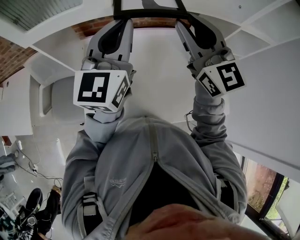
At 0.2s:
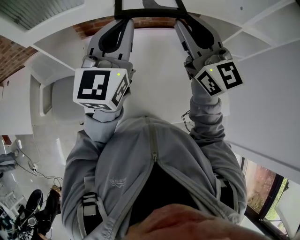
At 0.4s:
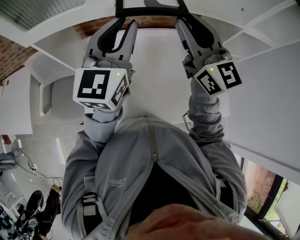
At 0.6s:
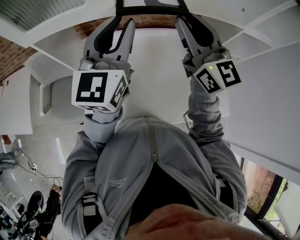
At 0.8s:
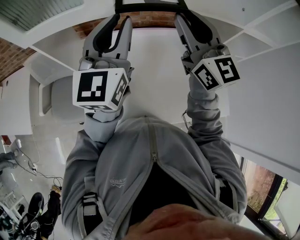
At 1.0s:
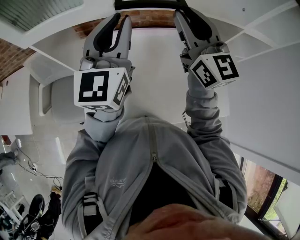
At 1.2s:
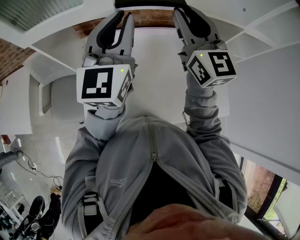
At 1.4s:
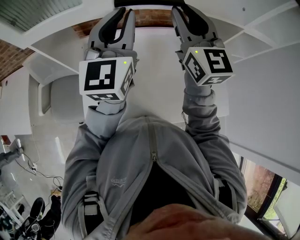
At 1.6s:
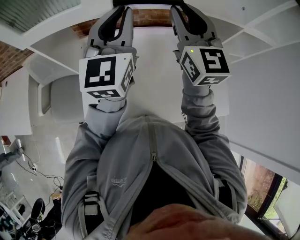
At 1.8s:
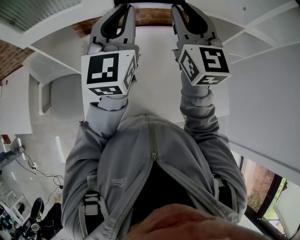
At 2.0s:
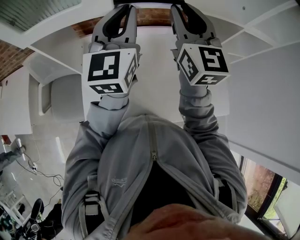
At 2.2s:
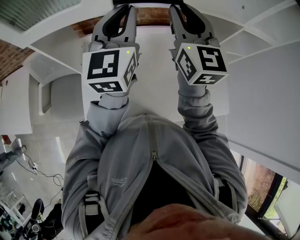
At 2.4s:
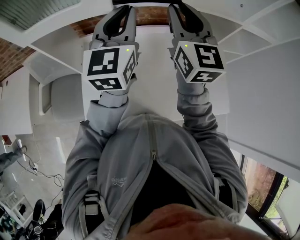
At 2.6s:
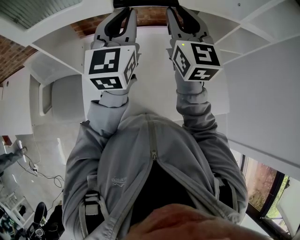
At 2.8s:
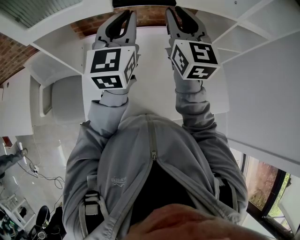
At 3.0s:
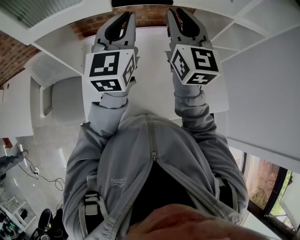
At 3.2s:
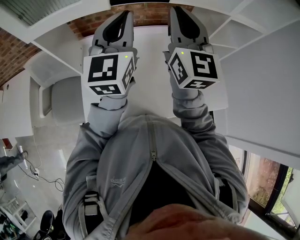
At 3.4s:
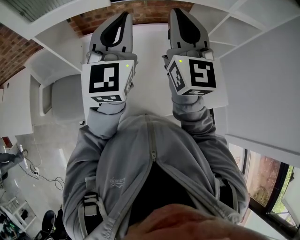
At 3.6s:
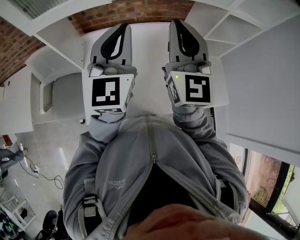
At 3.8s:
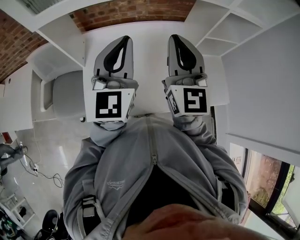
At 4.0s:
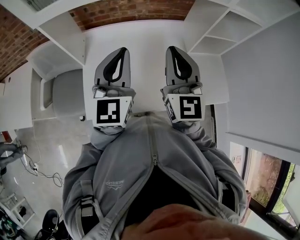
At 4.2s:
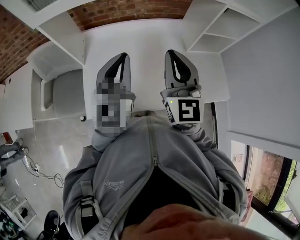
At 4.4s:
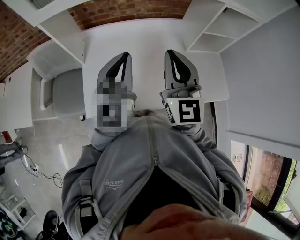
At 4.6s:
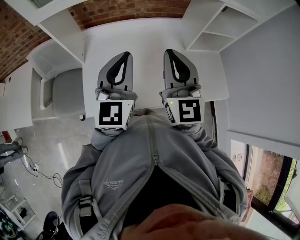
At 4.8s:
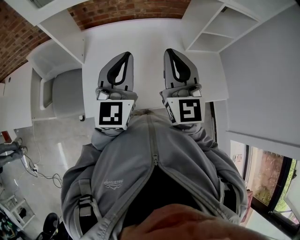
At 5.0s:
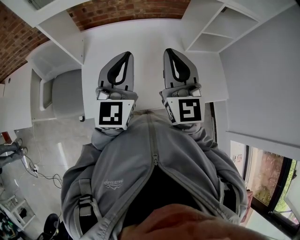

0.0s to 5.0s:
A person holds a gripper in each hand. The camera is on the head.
0.0s to 1.6s: The right gripper is displaced forward by roughly 5 cm.
1.6s to 3.4s: Both grippers travel together backward, approximately 10 cm.
3.4s to 5.0s: Both grippers travel together backward and downward, approximately 15 cm.

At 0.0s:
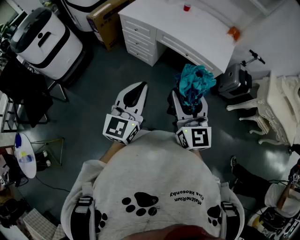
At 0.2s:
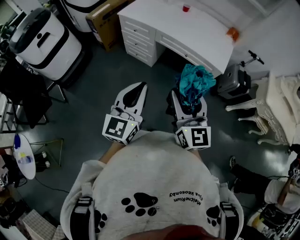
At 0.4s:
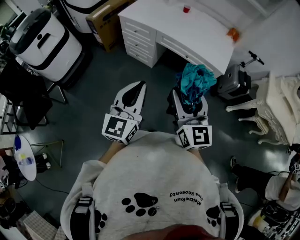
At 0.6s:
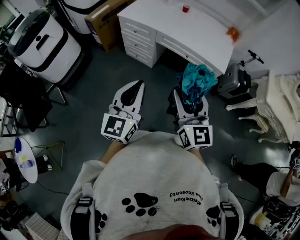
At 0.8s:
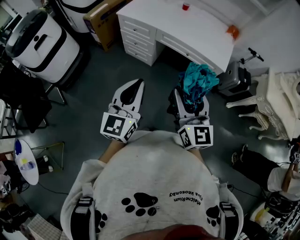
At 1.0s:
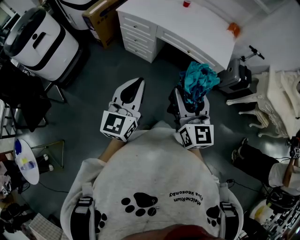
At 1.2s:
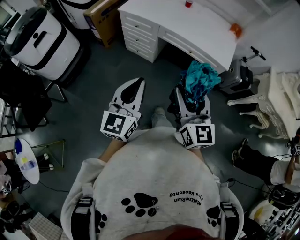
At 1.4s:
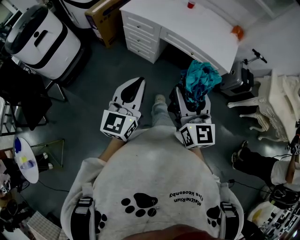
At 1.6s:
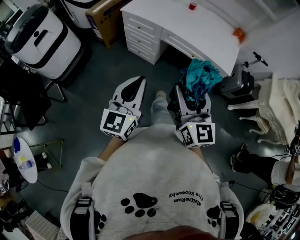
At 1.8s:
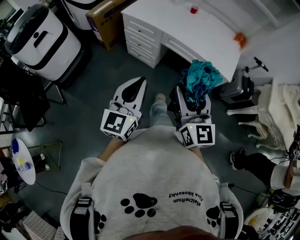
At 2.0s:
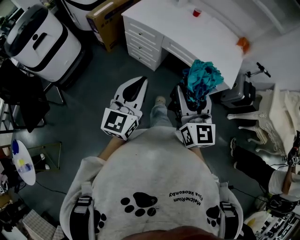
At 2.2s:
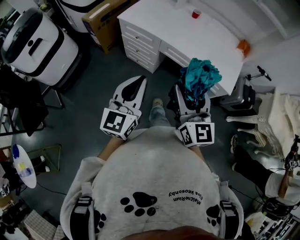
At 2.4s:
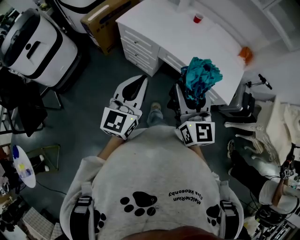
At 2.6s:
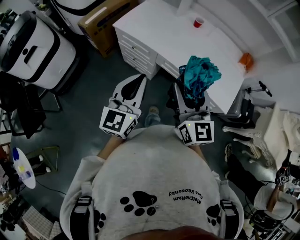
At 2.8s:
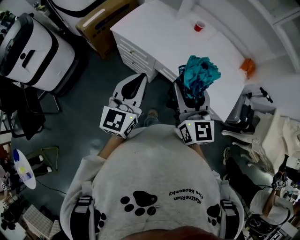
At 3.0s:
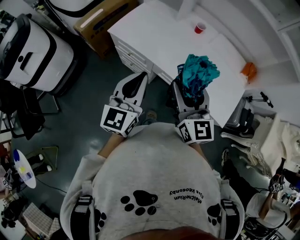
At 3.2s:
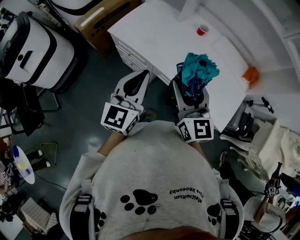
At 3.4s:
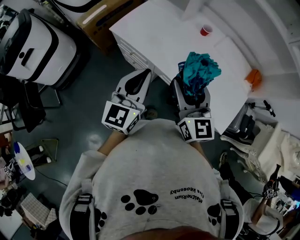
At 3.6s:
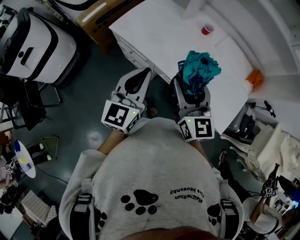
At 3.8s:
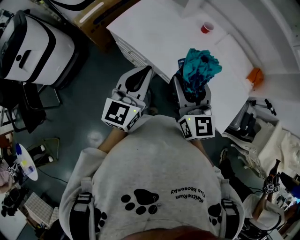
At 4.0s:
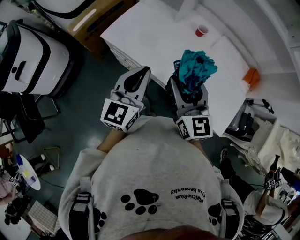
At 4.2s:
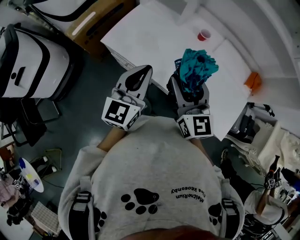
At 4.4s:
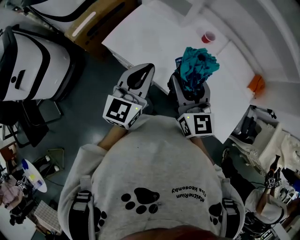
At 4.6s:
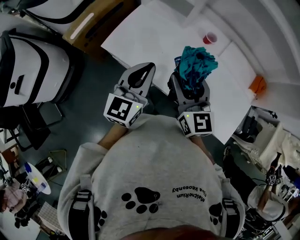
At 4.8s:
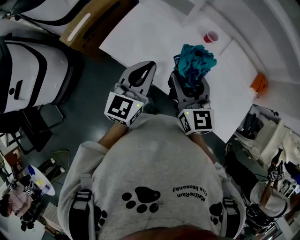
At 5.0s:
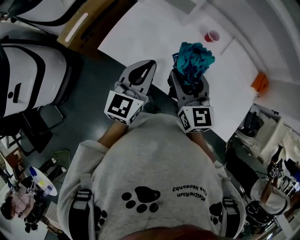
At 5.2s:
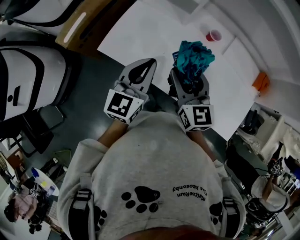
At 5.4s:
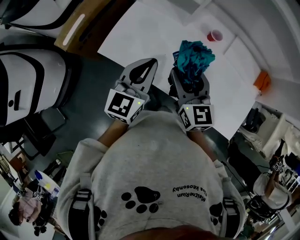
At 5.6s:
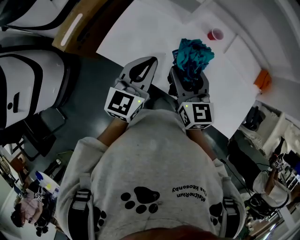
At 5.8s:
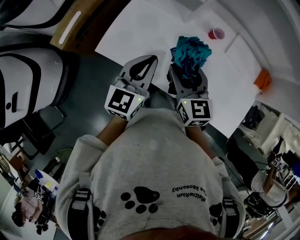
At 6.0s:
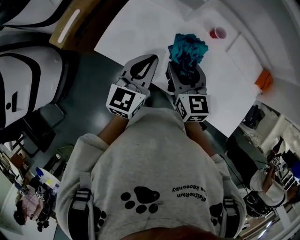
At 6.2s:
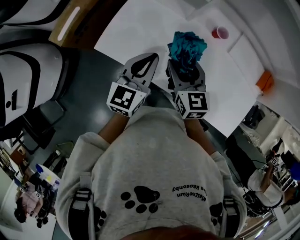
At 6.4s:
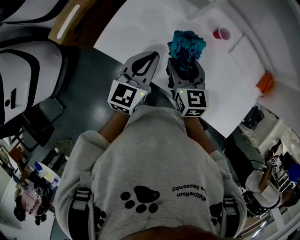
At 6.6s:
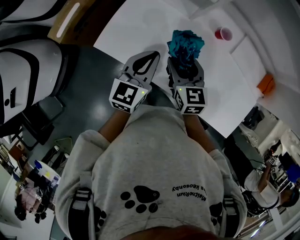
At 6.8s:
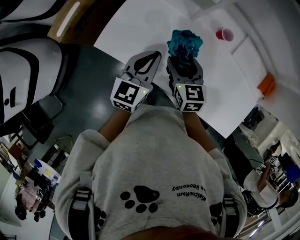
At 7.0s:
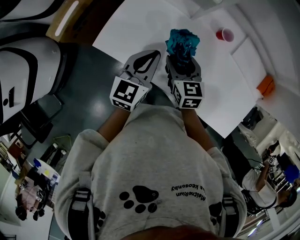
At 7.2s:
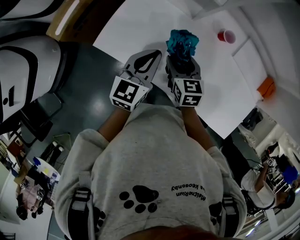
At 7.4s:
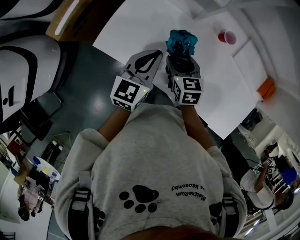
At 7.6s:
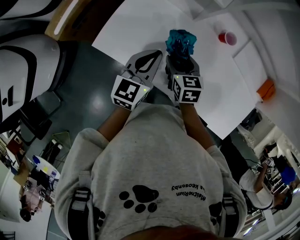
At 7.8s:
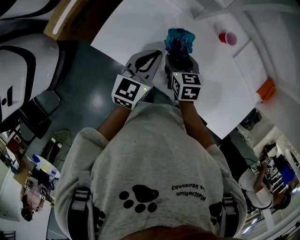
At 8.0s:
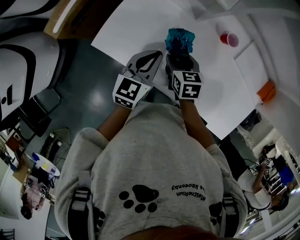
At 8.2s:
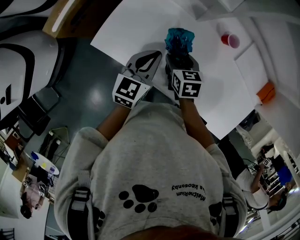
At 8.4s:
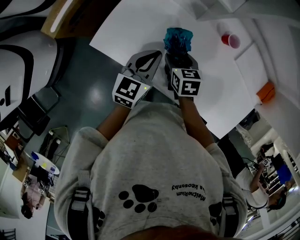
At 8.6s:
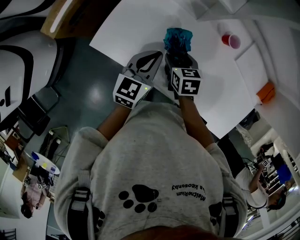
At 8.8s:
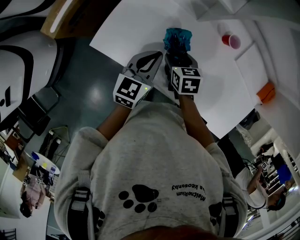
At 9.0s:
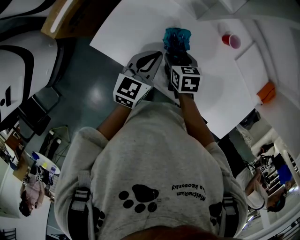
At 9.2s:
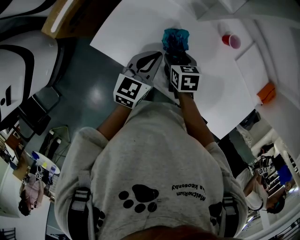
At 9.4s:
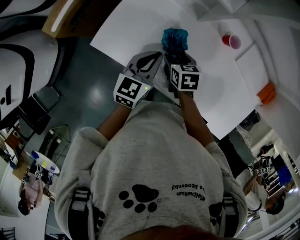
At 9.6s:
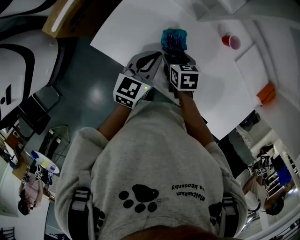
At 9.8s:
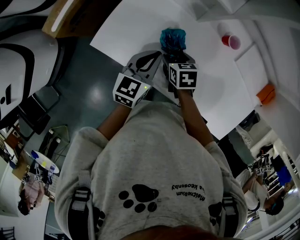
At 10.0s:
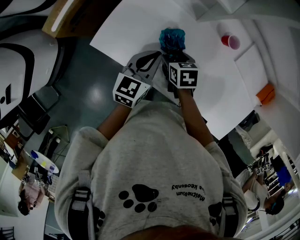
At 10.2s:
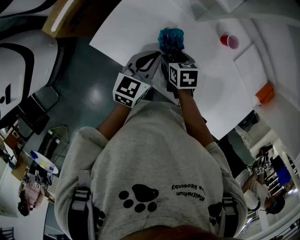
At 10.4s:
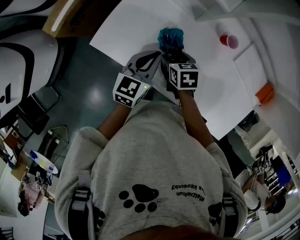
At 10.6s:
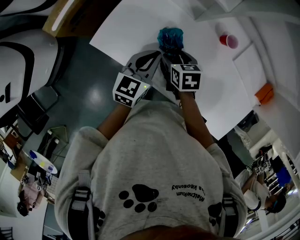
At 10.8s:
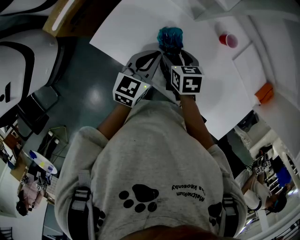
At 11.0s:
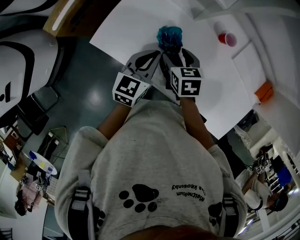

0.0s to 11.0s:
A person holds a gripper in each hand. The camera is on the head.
0.0s to 1.6s: The grippers both shift to the left and forward by roughly 10 cm.
1.6s to 3.2s: The two grippers travel together, forward, roughly 50 cm.
3.2s to 4.8s: Both grippers move forward, about 25 cm.
4.8s to 6.2s: The left gripper is displaced forward and downward by roughly 10 cm, while the right gripper goes about 15 cm downward and forward.
6.2s to 7.8s: The left gripper shifts roughly 10 cm downward. Meanwhile the right gripper heads downward, covering approximately 15 cm, and rotates about 20 degrees.
7.8s to 9.4s: The right gripper heads downward, covering some 5 cm.
9.4s to 11.0s: The right gripper travels upward by approximately 5 cm.

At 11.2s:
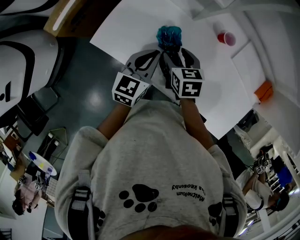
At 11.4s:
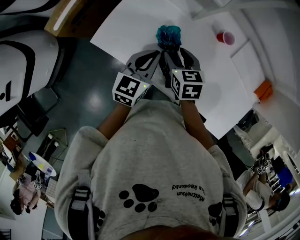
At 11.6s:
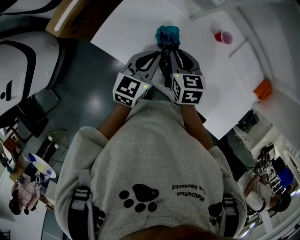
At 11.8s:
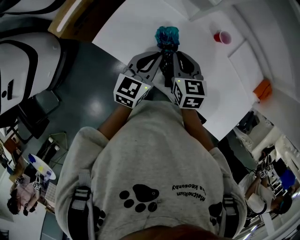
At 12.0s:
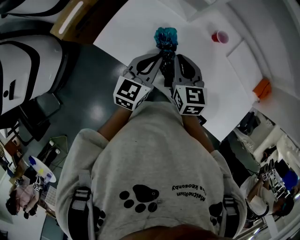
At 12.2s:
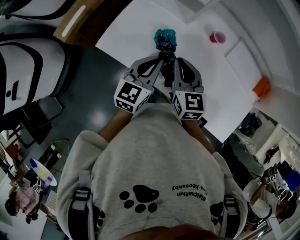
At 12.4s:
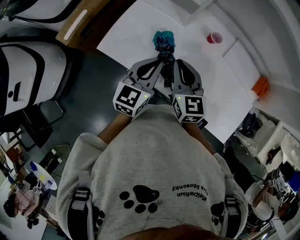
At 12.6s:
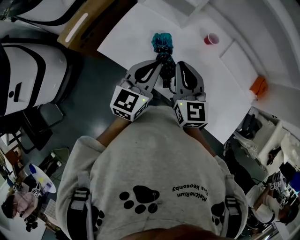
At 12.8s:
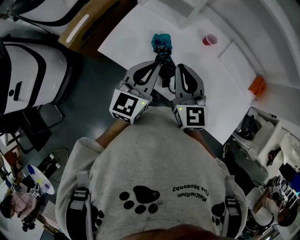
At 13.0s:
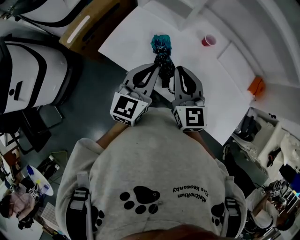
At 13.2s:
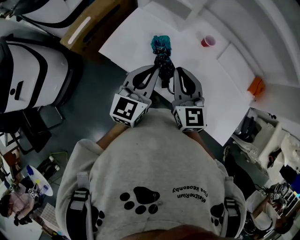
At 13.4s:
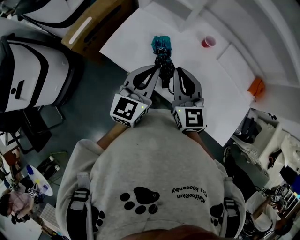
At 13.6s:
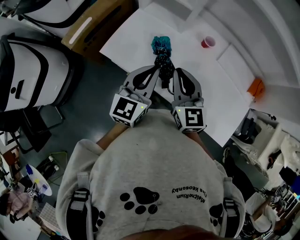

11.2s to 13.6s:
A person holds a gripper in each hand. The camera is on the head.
11.2s to 12.4s: The two grippers go roughly 15 cm upward and backward. The right gripper angles its fingers upward, by some 30 degrees, and closes its fingers.
12.4s to 13.6s: The left gripper is displaced upward and backward by roughly 10 cm, while the right gripper moves backward and upward, some 10 cm.

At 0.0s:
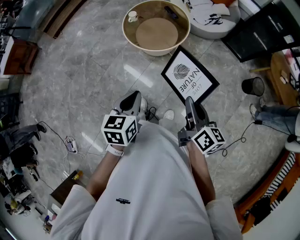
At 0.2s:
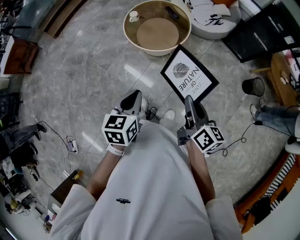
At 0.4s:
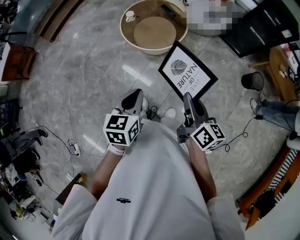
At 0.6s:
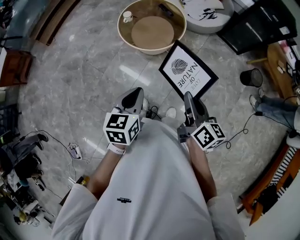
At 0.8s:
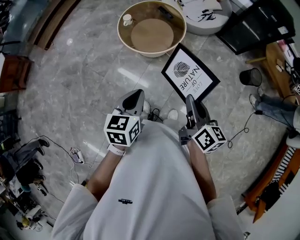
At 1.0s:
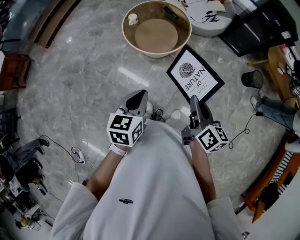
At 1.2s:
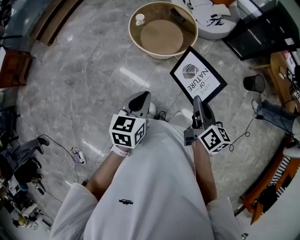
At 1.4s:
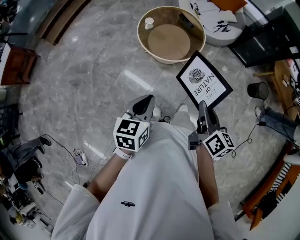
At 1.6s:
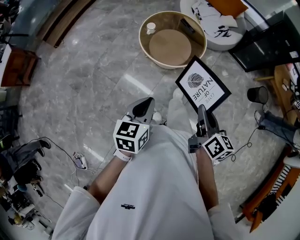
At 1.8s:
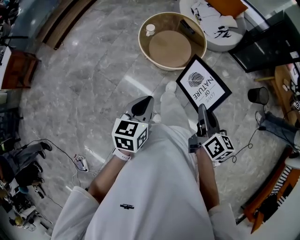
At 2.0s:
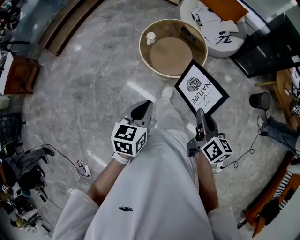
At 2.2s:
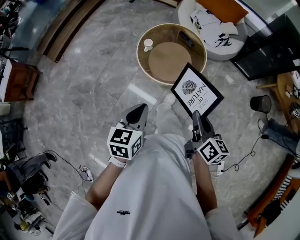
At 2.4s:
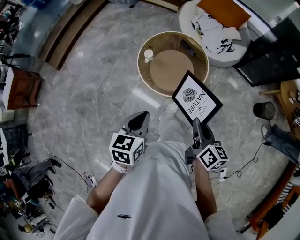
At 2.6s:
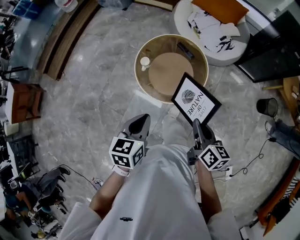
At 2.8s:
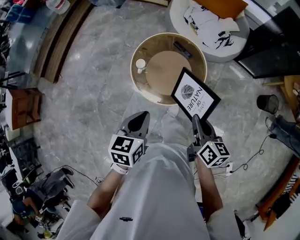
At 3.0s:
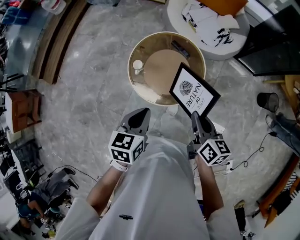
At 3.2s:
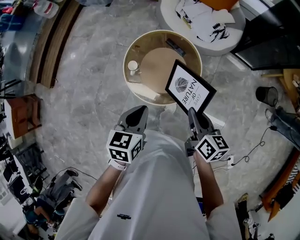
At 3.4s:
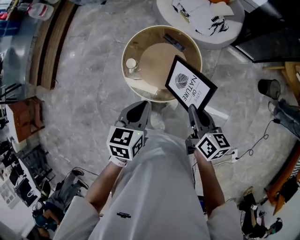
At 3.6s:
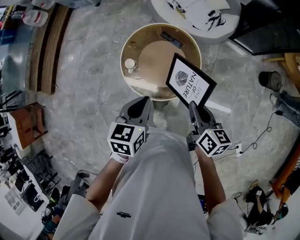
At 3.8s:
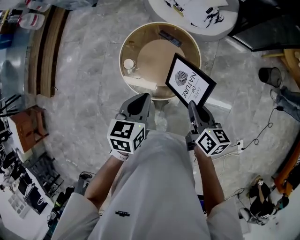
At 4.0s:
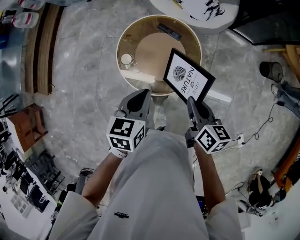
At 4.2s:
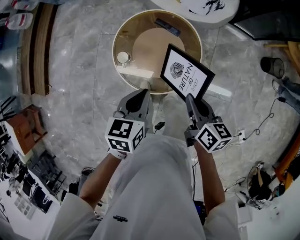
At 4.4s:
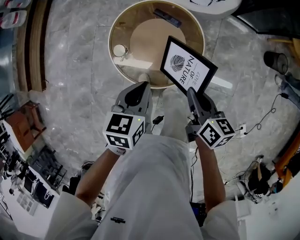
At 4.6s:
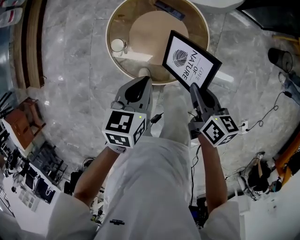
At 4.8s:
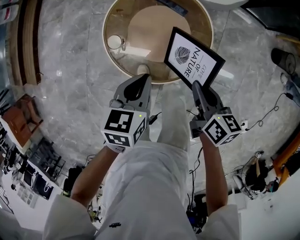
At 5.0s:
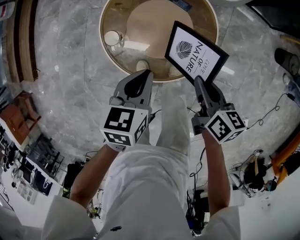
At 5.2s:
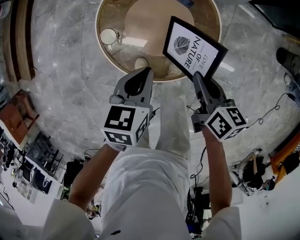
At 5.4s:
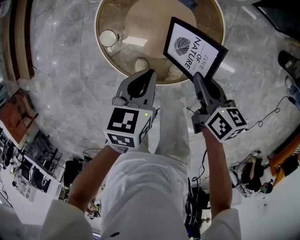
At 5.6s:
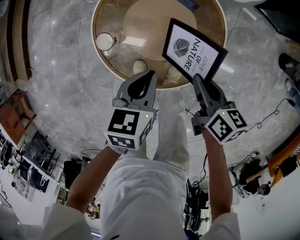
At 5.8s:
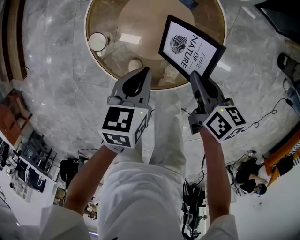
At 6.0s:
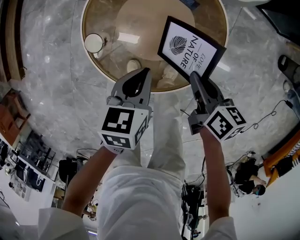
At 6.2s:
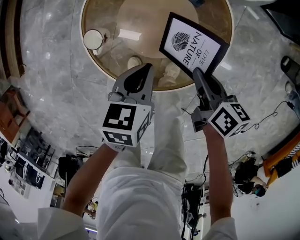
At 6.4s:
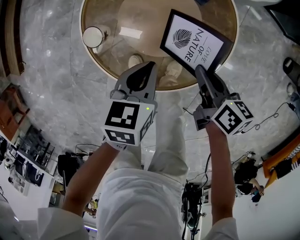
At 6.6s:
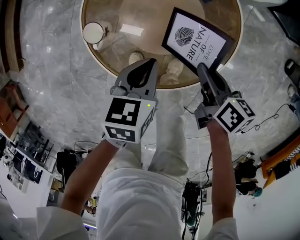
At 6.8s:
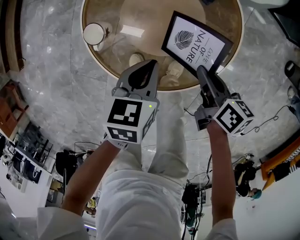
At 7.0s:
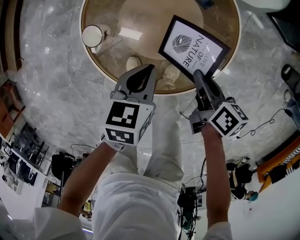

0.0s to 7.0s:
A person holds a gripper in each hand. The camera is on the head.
0.0s to 1.4s: The grippers both shift to the left by roughly 15 cm.
1.4s to 2.8s: The grippers both shift forward by some 30 cm.
2.8s to 4.2s: The grippers both shift forward and downward by approximately 15 cm.
4.2s to 5.6s: The two grippers go roughly 20 cm downward.
5.6s to 7.0s: The grippers both shift downward by approximately 10 cm.
